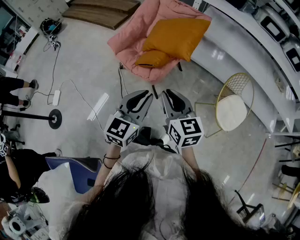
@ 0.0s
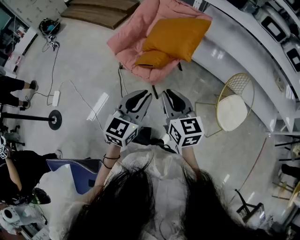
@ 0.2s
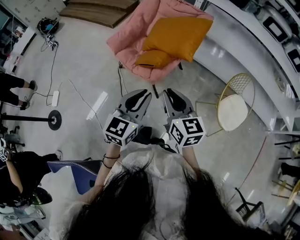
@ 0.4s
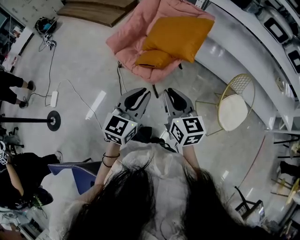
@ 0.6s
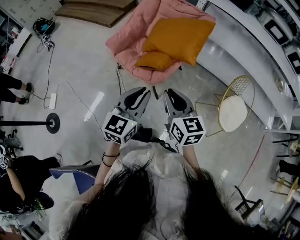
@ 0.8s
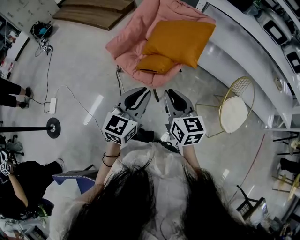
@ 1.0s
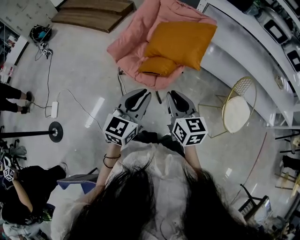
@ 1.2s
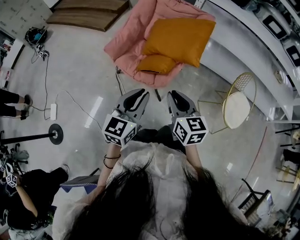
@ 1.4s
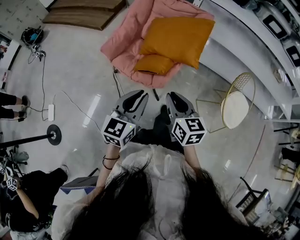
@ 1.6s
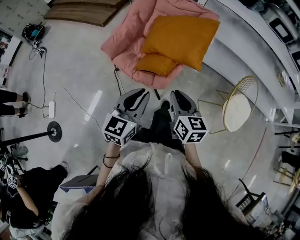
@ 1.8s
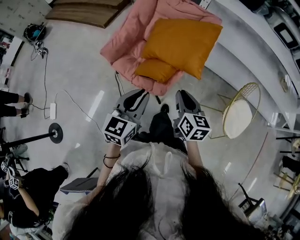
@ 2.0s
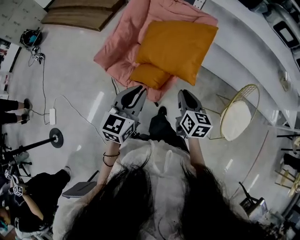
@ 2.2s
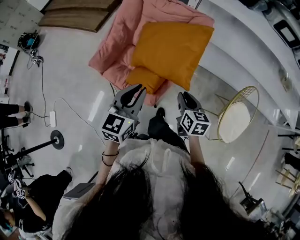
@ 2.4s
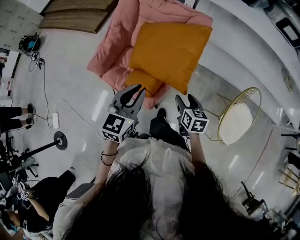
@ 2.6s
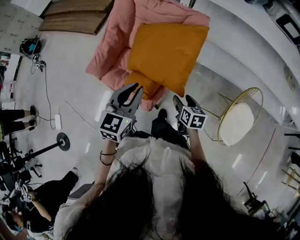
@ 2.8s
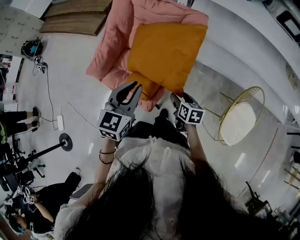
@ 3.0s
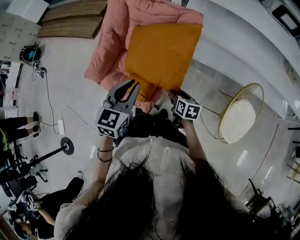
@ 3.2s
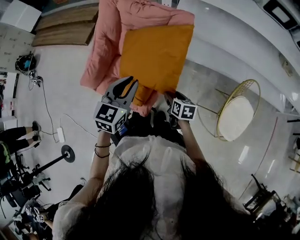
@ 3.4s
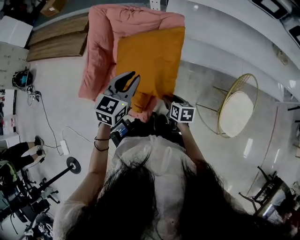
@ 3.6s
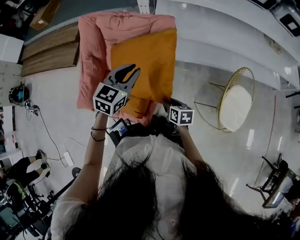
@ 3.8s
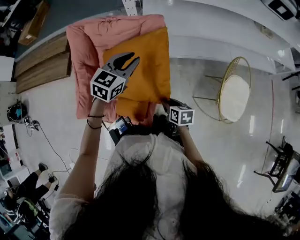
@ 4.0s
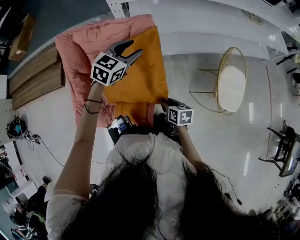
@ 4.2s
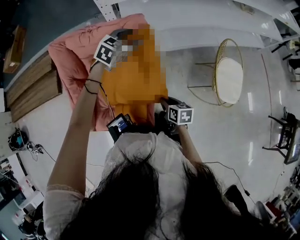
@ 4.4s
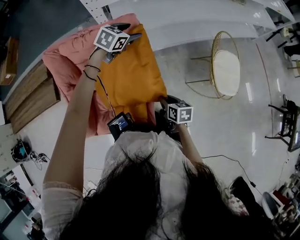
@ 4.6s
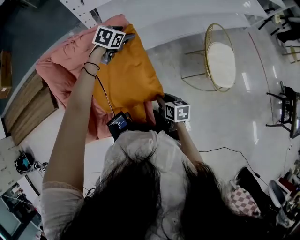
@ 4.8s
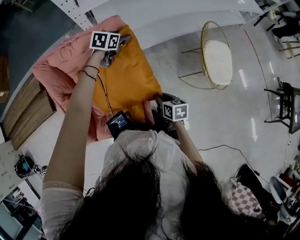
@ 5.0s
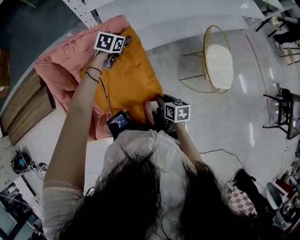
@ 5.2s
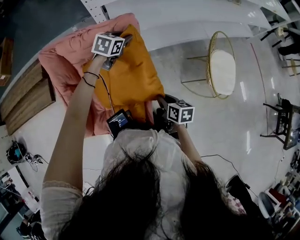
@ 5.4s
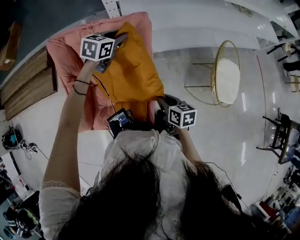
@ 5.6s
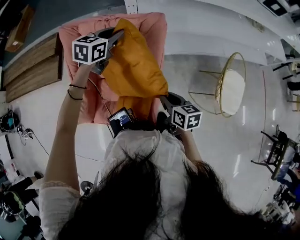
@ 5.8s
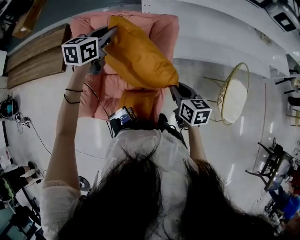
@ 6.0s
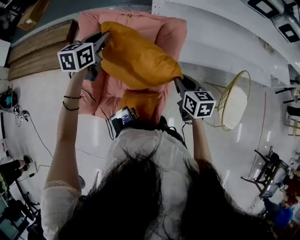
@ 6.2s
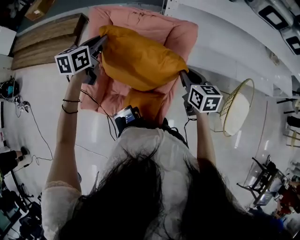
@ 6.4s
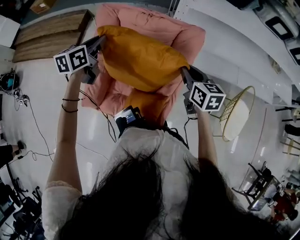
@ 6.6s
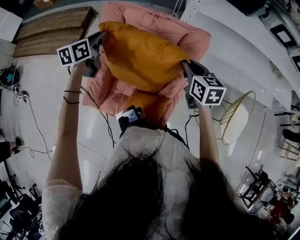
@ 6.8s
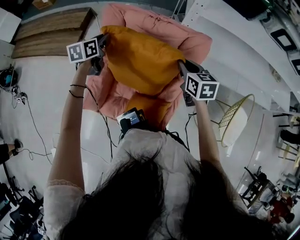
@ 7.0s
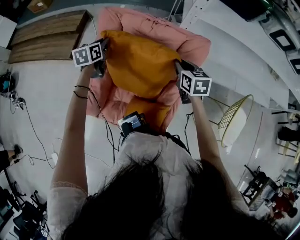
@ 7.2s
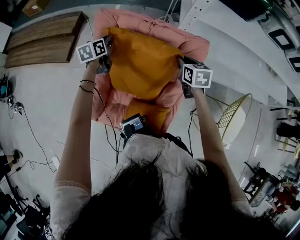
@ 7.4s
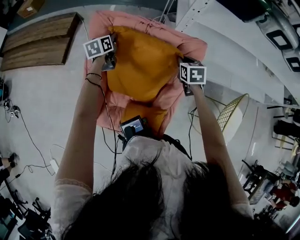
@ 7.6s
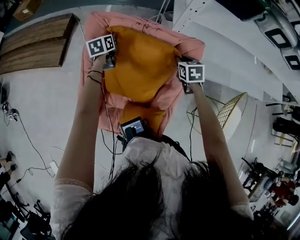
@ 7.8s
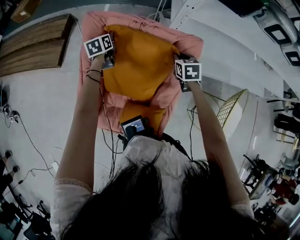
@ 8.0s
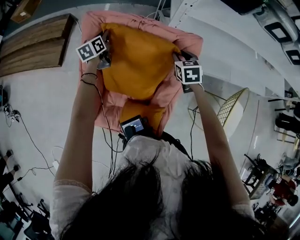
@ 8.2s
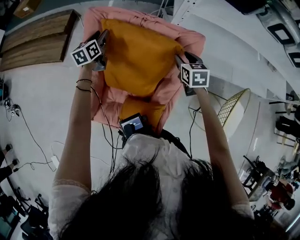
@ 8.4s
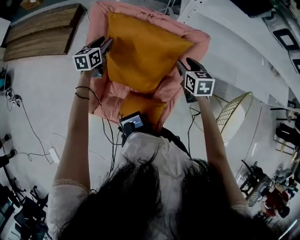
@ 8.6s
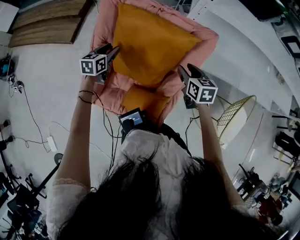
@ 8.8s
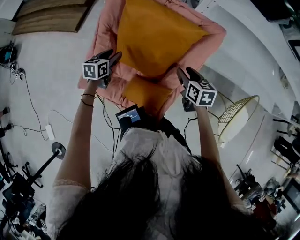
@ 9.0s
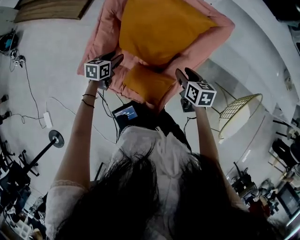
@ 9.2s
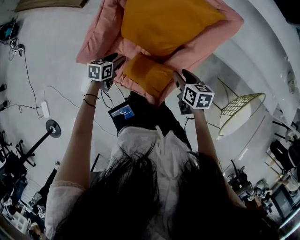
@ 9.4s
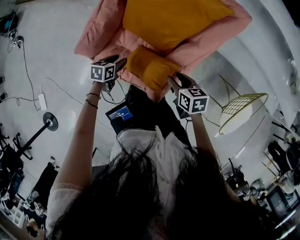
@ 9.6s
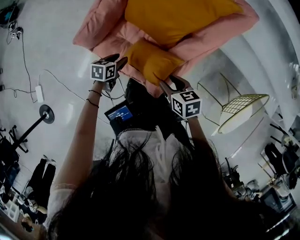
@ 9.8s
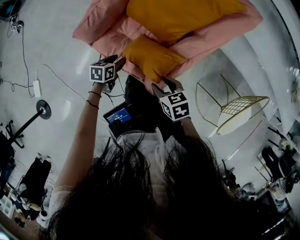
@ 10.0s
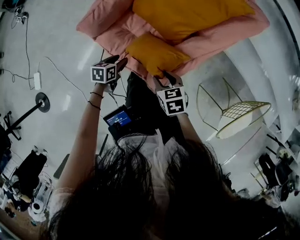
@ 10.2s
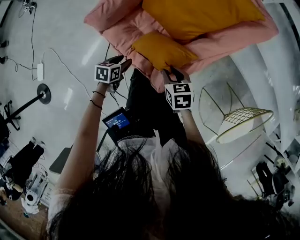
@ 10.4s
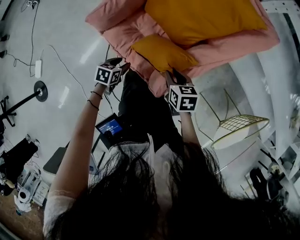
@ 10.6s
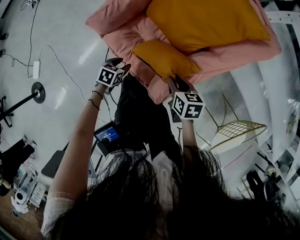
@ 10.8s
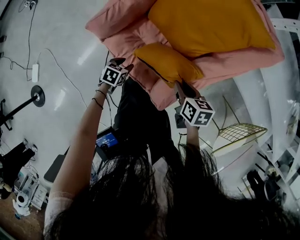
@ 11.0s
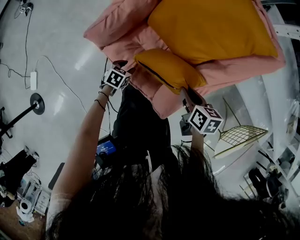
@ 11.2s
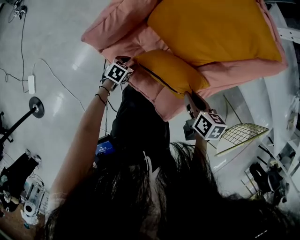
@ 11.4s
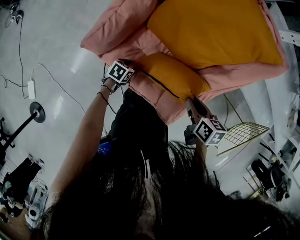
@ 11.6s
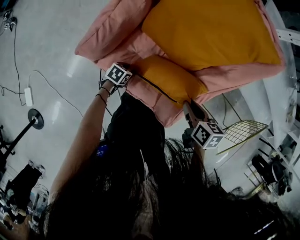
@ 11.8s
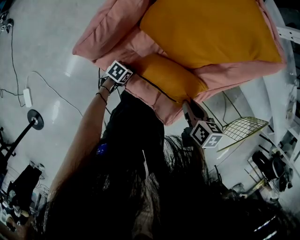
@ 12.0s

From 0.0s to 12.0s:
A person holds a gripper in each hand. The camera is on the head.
From 0.0s to 1.6s: The left gripper shifts approximately 15 cm forward and to the left. Meanwhile the right gripper travels forward, downward and to the left by about 15 cm.
From 1.6s to 3.0s: The right gripper goes approximately 35 cm forward, downward and to the right, changes its angle by roughly 30 degrees, and opens its fingers. The left gripper moves forward, approximately 25 cm.
From 3.0s to 4.4s: The right gripper swivels approximately 30 degrees, and closes, while the left gripper shifts by about 35 cm, rotates some 50 degrees, and opens.
From 4.4s to 6.0s: The right gripper is displaced upward and forward by some 15 cm, and rotates roughly 20 degrees. The left gripper travels to the left and upward by roughly 20 cm, rotates roughly 40 degrees, and closes up.
From 6.0s to 7.6s: The left gripper is displaced to the left, downward and forward by roughly 30 cm, and rotates some 30 degrees; the right gripper shifts approximately 25 cm forward, and changes its angle by approximately 30 degrees.
From 7.6s to 9.0s: The right gripper heads backward, covering roughly 15 cm, rotates approximately 20 degrees, and opens, while the left gripper moves backward, roughly 25 cm, and opens up.
From 9.0s to 10.4s: The right gripper shifts approximately 25 cm backward, downward and to the left, and changes its angle by roughly 30 degrees; the left gripper moves backward and downward, some 35 cm, and swivels approximately 30 degrees.
From 10.4s to 12.0s: The right gripper rotates about 30 degrees. Meanwhile the left gripper heads downward, covering about 15 cm, and rotates approximately 30 degrees.

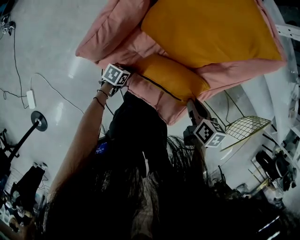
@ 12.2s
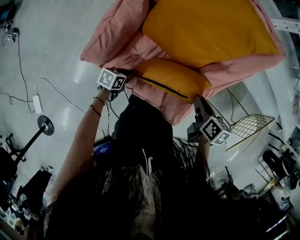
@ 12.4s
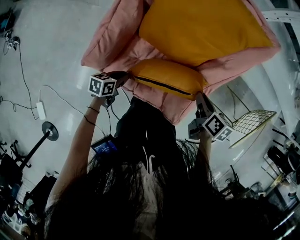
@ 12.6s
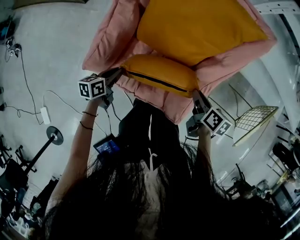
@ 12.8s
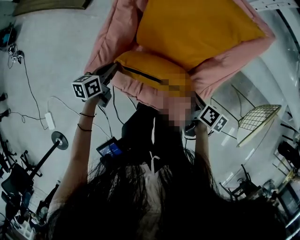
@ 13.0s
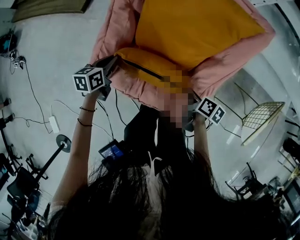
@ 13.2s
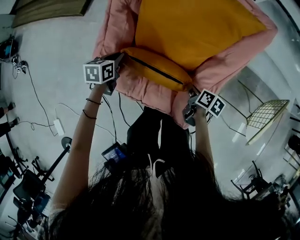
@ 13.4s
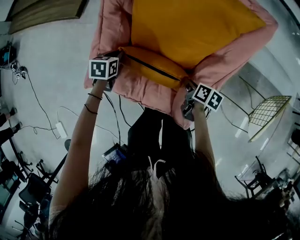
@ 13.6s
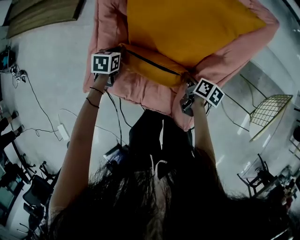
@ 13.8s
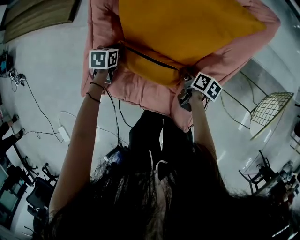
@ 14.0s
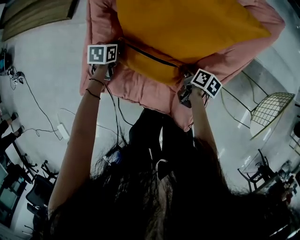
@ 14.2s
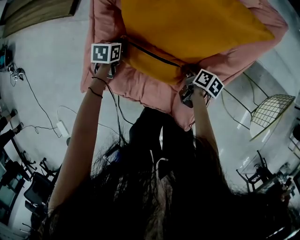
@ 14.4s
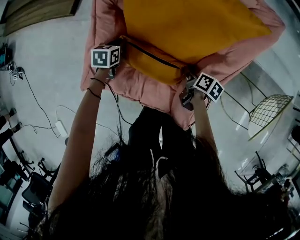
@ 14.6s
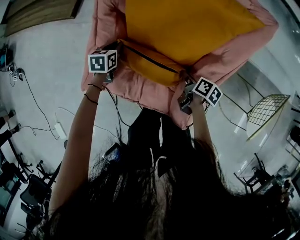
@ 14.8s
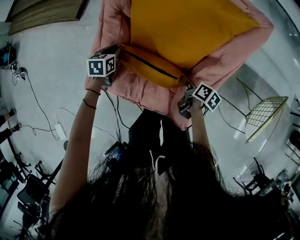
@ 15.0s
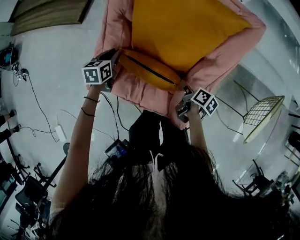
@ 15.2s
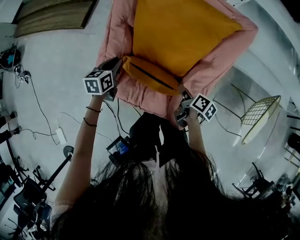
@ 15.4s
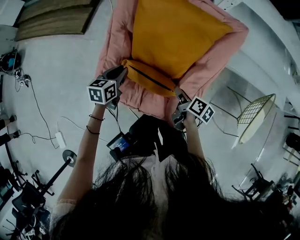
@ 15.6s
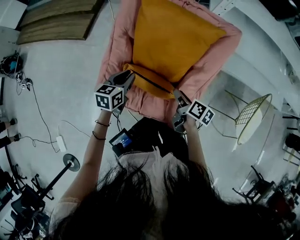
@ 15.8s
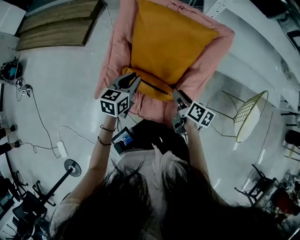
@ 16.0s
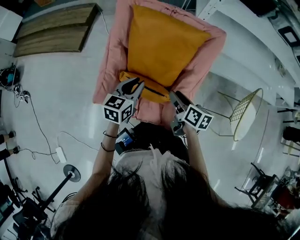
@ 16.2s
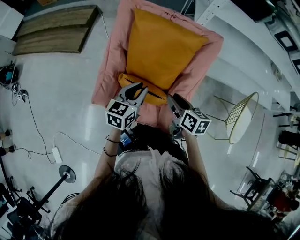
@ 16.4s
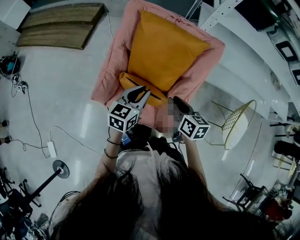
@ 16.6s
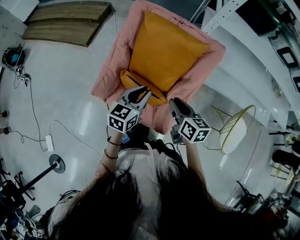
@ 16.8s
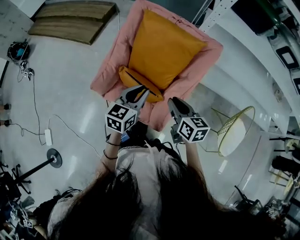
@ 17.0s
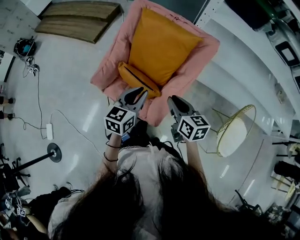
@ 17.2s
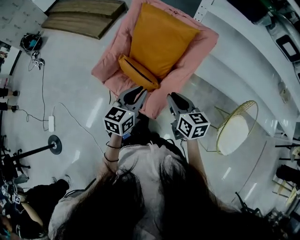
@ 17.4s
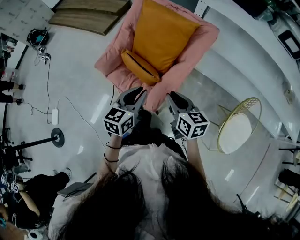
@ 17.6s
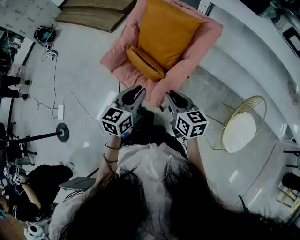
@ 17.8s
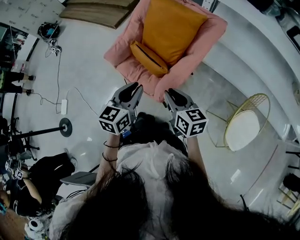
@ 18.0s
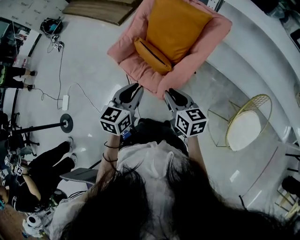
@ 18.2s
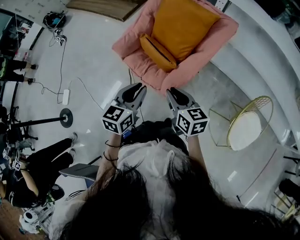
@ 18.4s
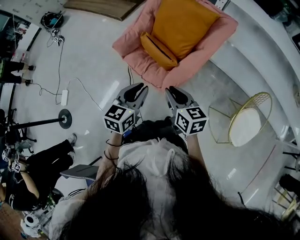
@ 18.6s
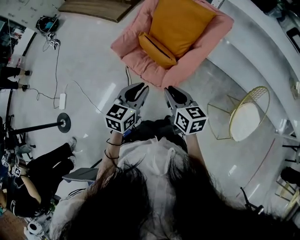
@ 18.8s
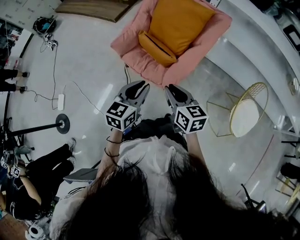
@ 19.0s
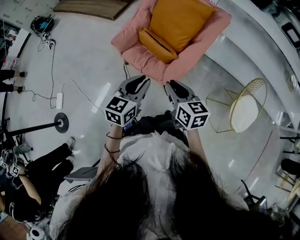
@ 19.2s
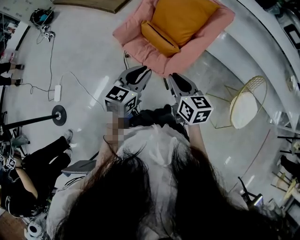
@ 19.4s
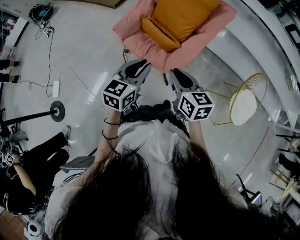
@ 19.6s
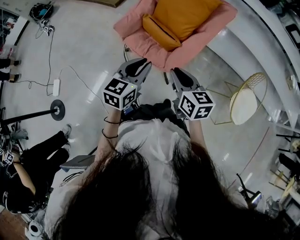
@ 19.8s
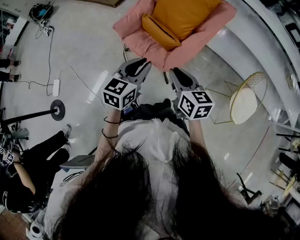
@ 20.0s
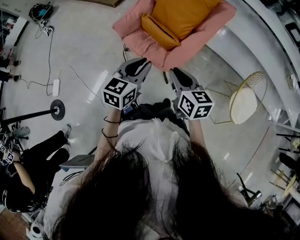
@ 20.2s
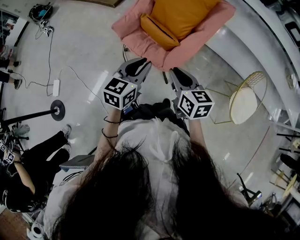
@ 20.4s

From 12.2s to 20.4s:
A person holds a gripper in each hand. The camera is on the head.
From 12.2s to 13.8s: The right gripper is displaced downward and forward by some 15 cm, and turns by about 40 degrees; the left gripper travels forward, upward and to the left by approximately 25 cm, and rotates approximately 20 degrees.
From 13.8s to 15.4s: The left gripper travels upward by about 15 cm, and rotates approximately 20 degrees. Meanwhile the right gripper travels upward by roughly 10 cm, and opens its fingers.
From 15.4s to 17.2s: The left gripper moves upward, to the right and backward, some 35 cm, and rotates roughly 20 degrees. The right gripper heads upward, covering roughly 25 cm, twists some 50 degrees counterclockwise, seen from behind, and closes its fingers.
From 17.2s to 18.8s: The left gripper shifts roughly 20 cm backward, while the right gripper travels backward and to the left by about 20 cm.
From 18.8s to 20.4s: The right gripper moves approximately 5 cm.

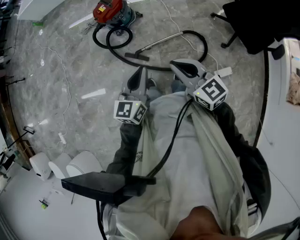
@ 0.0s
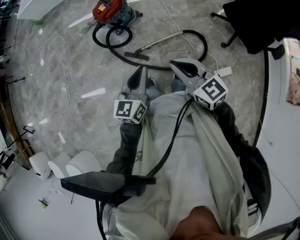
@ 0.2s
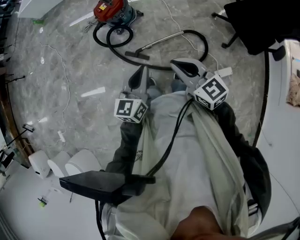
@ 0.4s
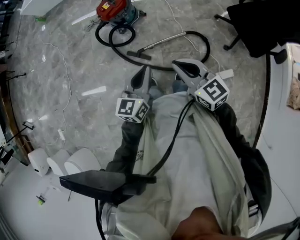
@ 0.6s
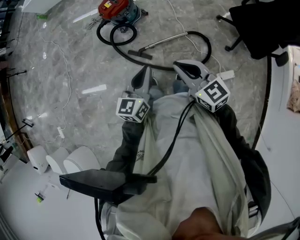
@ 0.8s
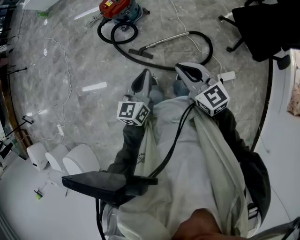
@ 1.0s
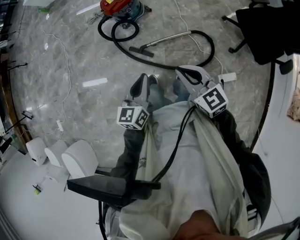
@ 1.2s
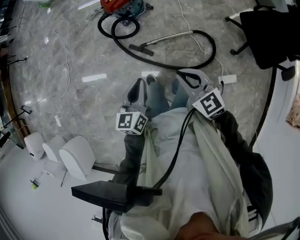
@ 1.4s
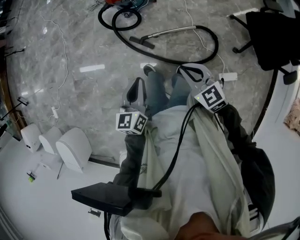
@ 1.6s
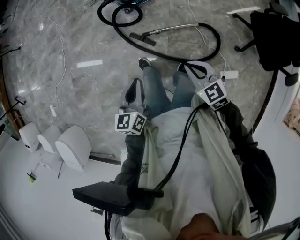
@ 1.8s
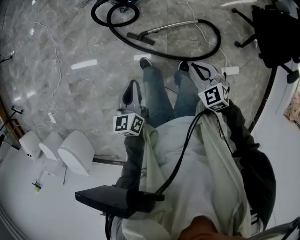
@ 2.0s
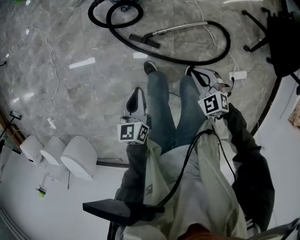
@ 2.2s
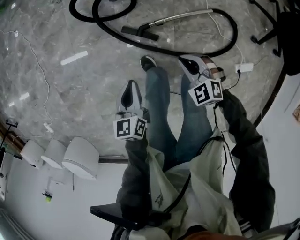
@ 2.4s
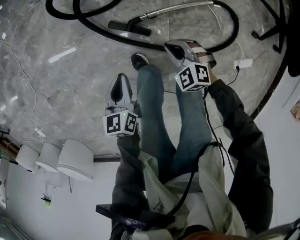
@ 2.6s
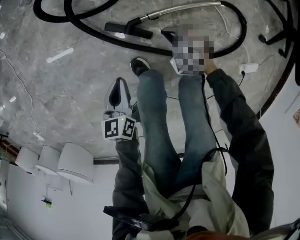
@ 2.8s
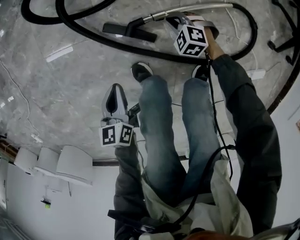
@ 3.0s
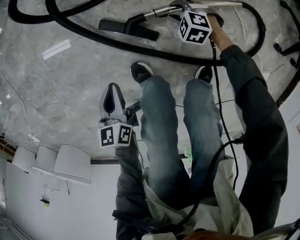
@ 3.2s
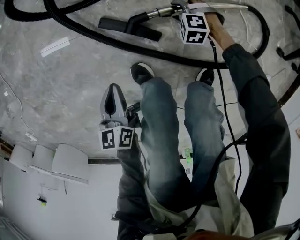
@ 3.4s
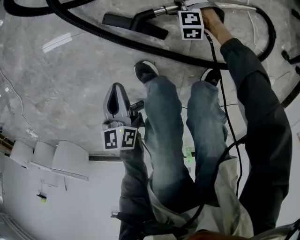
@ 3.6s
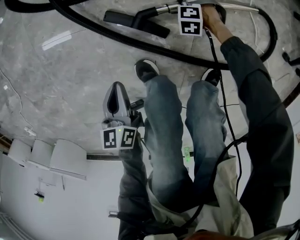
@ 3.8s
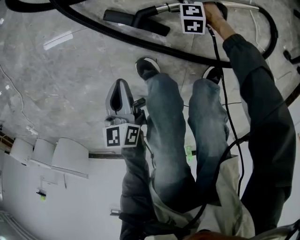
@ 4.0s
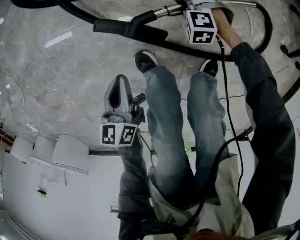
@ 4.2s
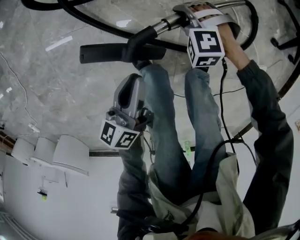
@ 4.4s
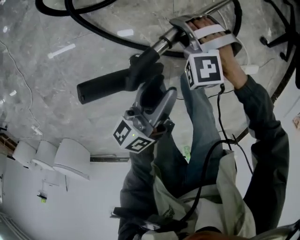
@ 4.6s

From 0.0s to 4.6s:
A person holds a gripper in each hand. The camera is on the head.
From 0.0s to 1.6s: The left gripper moves downward, approximately 5 cm, and rotates roughly 20 degrees. Meanwhile the right gripper shifts about 10 cm downward, and turns by approximately 20 degrees.
From 1.6s to 3.0s: Both grippers travel together downward, approximately 60 cm. The left gripper swivels about 20 degrees, while the right gripper tips its fingers downward by about 40 degrees.
From 3.0s to 4.6s: The grippers both shift upward by approximately 20 cm. The left gripper angles its fingers upward, by about 40 degrees, and opens its fingers; the right gripper turns by roughly 20 degrees, and opens.
